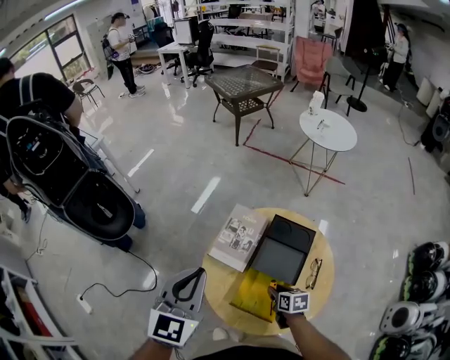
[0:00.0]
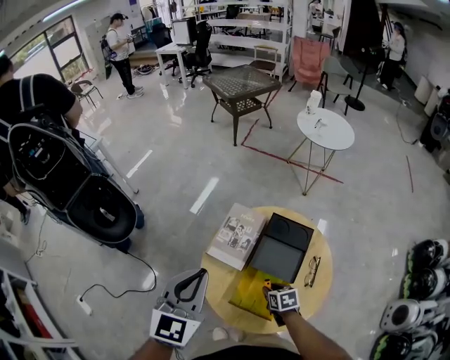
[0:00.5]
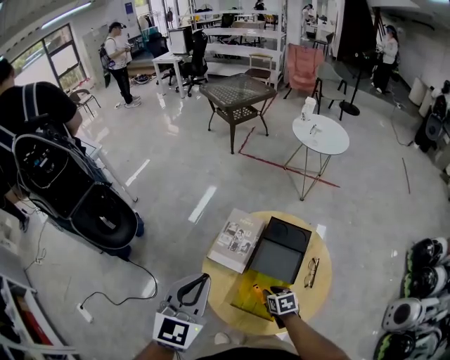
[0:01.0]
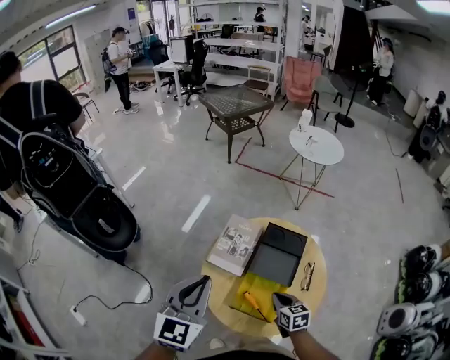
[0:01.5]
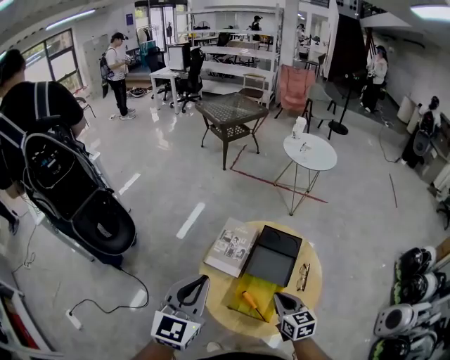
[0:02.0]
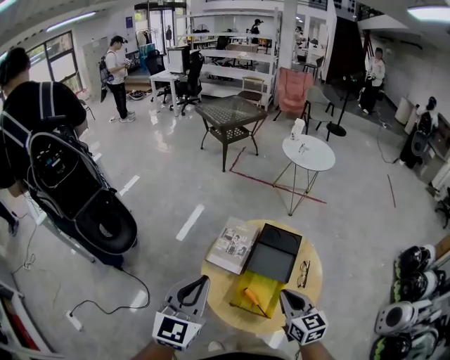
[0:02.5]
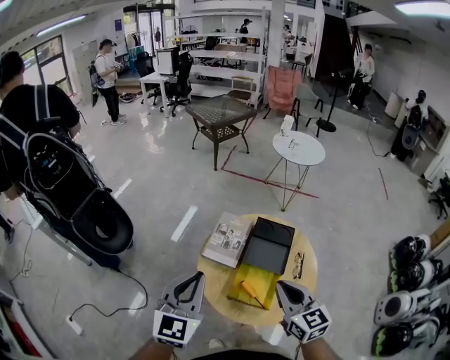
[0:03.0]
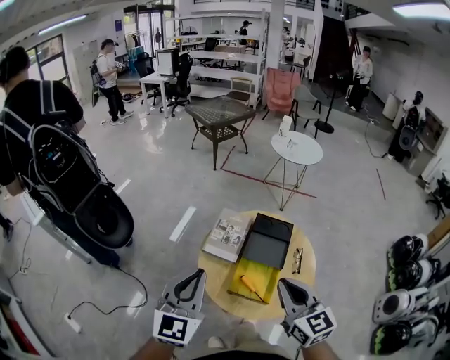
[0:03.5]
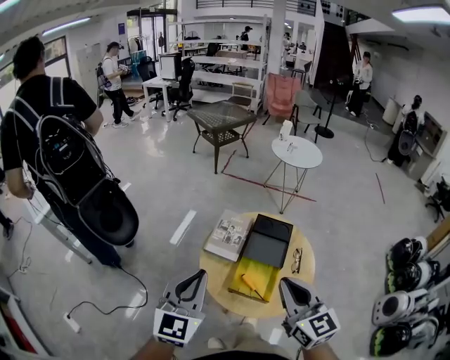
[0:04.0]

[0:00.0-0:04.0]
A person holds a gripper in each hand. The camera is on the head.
0:00.0 to 0:02.0: The left gripper travels backward by about 5 cm, while the right gripper heads upward and backward, covering about 20 cm, swivels some 30 degrees, and closes its fingers.
0:02.0 to 0:04.0: The left gripper is displaced backward by approximately 10 cm, while the right gripper goes roughly 25 cm upward and backward, and turns by roughly 20 degrees.

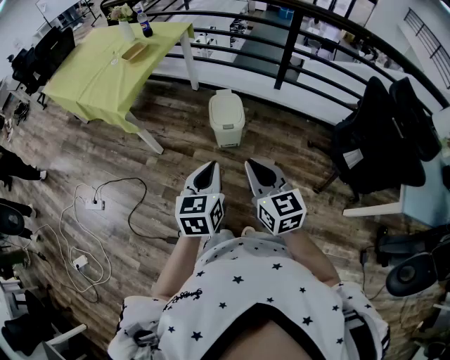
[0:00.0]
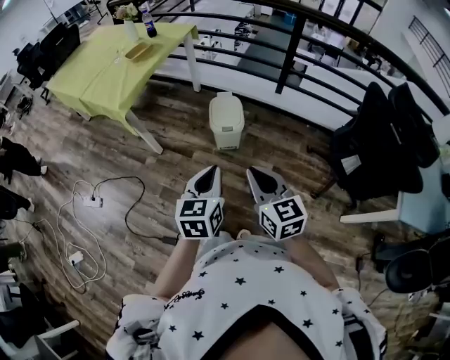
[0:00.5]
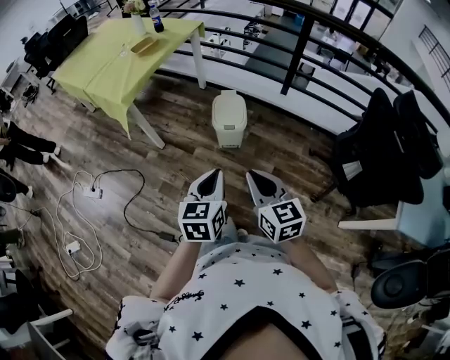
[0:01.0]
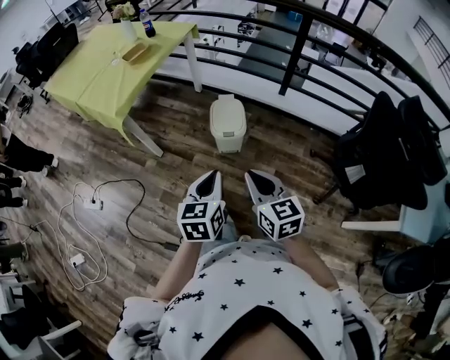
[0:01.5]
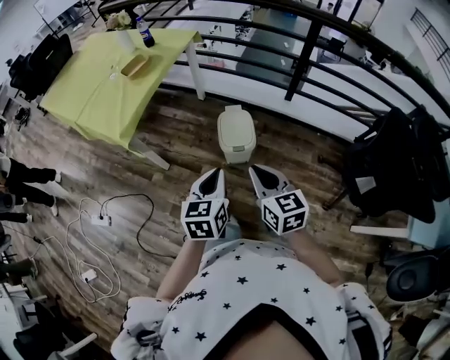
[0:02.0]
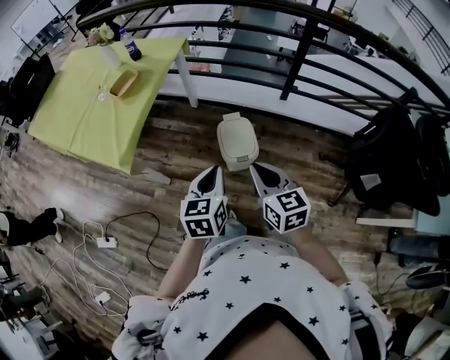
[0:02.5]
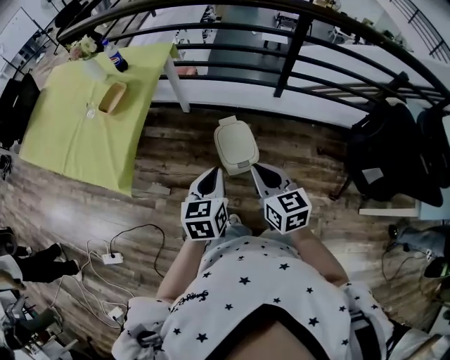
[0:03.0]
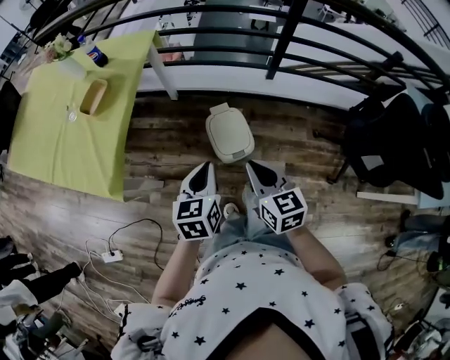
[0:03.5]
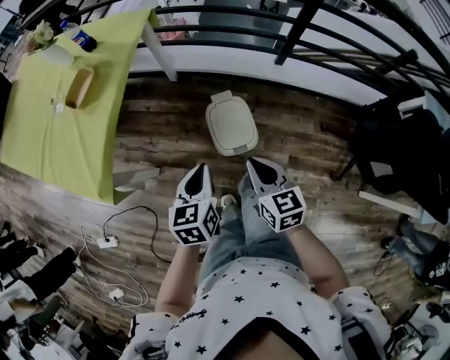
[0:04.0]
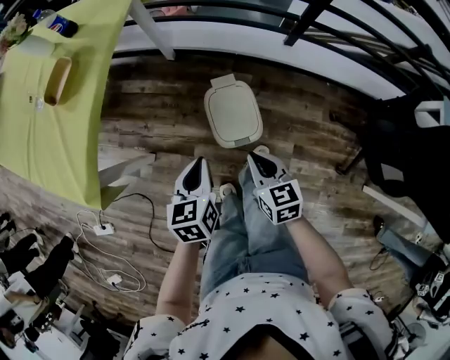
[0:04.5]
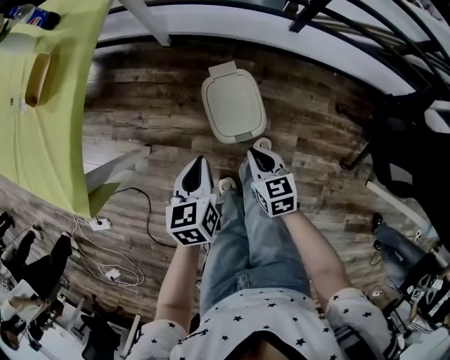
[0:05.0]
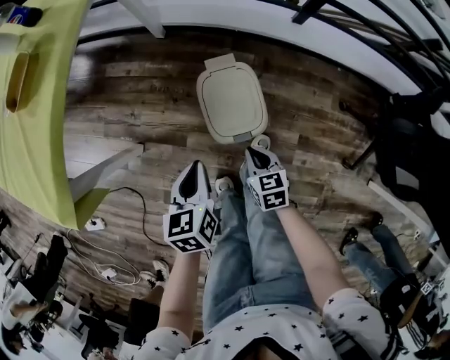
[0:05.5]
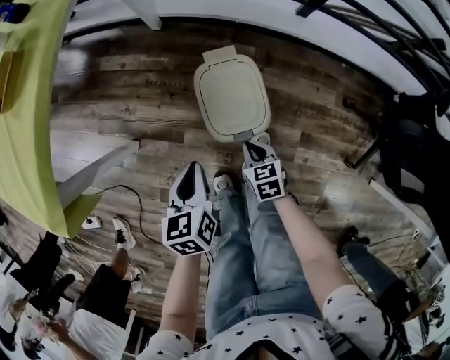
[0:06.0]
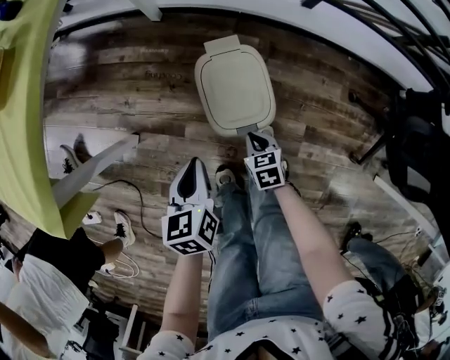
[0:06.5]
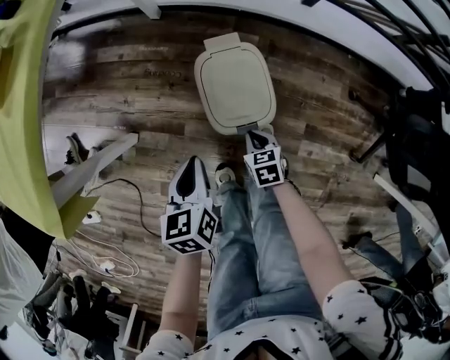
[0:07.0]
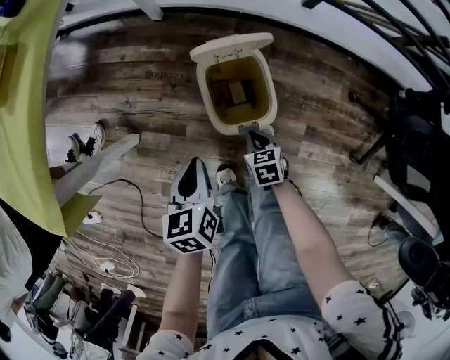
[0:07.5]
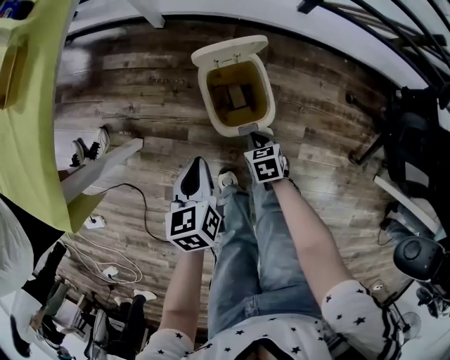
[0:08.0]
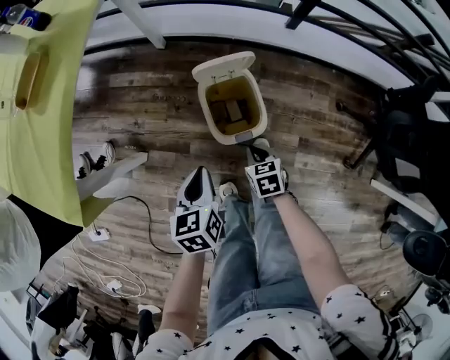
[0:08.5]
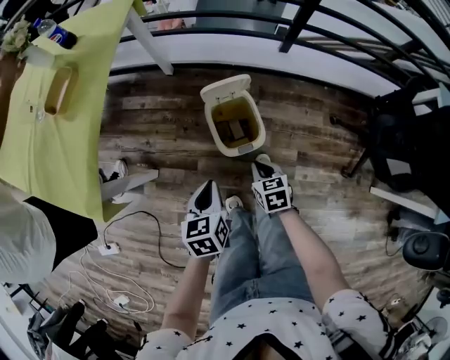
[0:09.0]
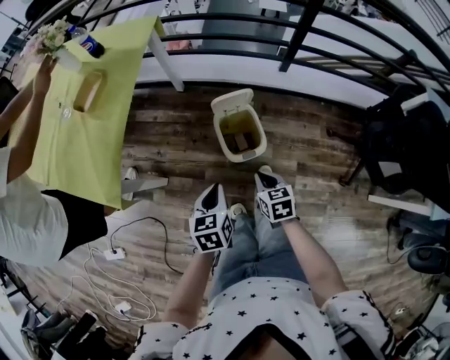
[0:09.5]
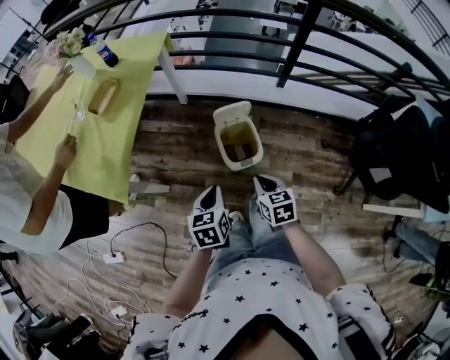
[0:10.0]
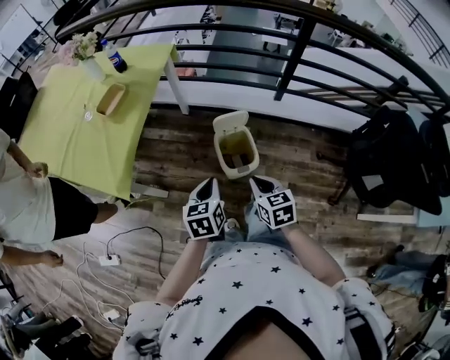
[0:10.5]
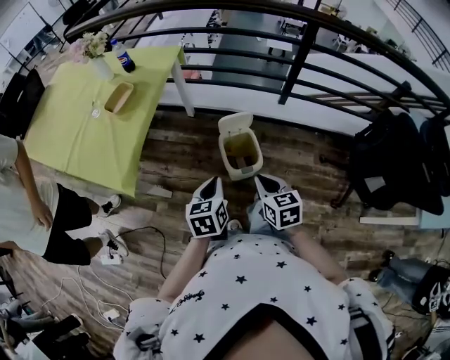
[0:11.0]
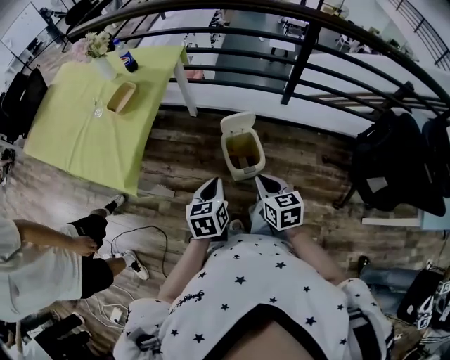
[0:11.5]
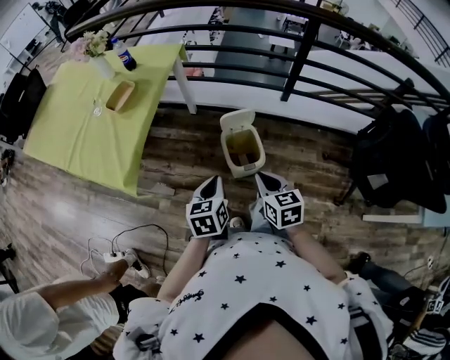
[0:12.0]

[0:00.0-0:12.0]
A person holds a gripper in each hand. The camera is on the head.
0:00.0 to 0:02.0: The two grippers go roughly 15 cm forward.
0:02.0 to 0:04.0: Both grippers travel together forward and downward, roughly 25 cm.
0:04.0 to 0:06.0: The right gripper heads downward, covering some 40 cm, and changes its angle by approximately 30 degrees. Meanwhile the left gripper shifts roughly 25 cm downward.
0:06.0 to 0:08.0: There are only small adjustments of the grippers.
0:08.0 to 0:10.0: The right gripper heads upward, covering roughly 35 cm, and changes its angle by about 20 degrees. The left gripper is displaced upward and backward by some 25 cm.
0:10.0 to 0:12.0: The right gripper heads upward, covering approximately 10 cm; the left gripper goes roughly 5 cm upward.

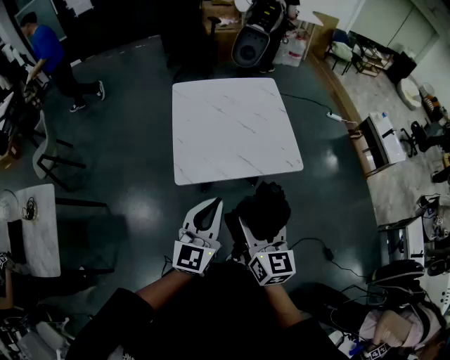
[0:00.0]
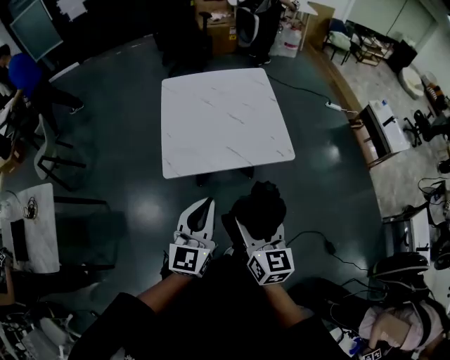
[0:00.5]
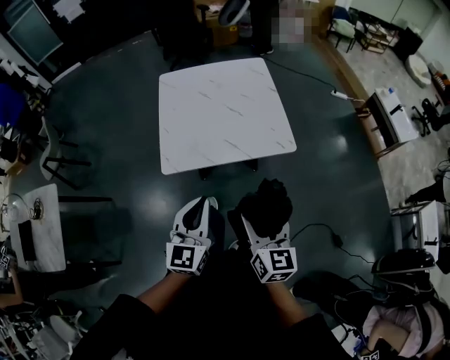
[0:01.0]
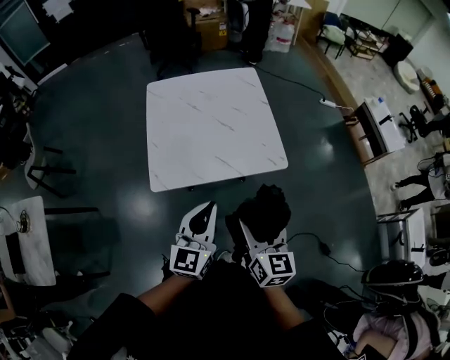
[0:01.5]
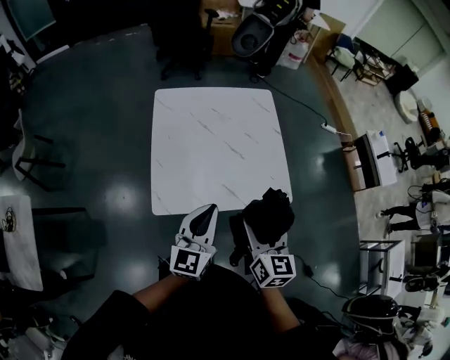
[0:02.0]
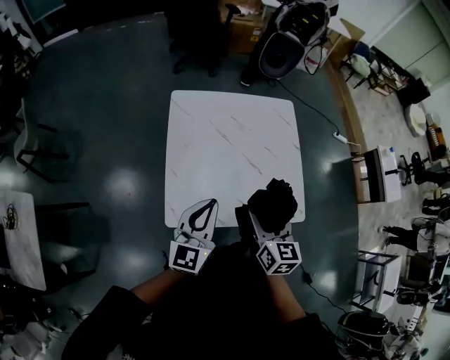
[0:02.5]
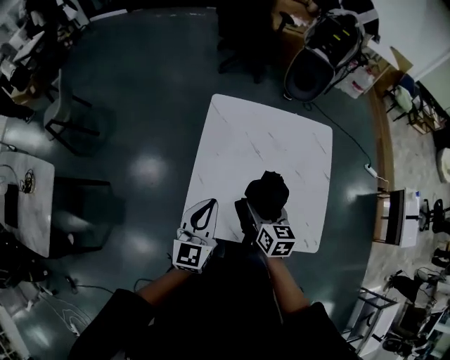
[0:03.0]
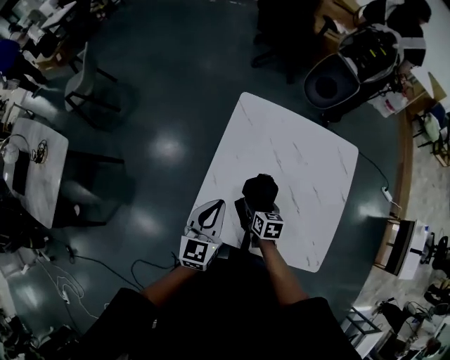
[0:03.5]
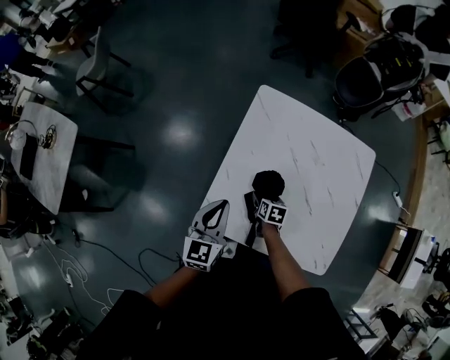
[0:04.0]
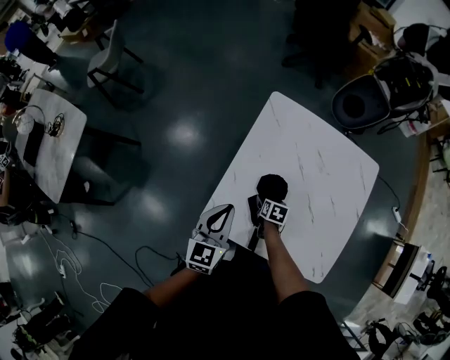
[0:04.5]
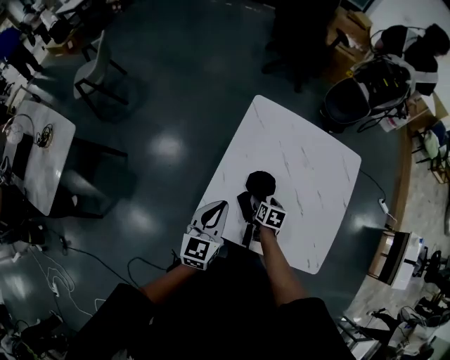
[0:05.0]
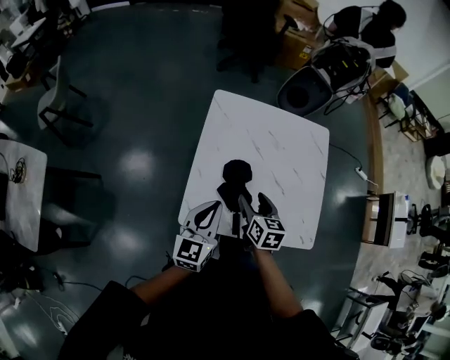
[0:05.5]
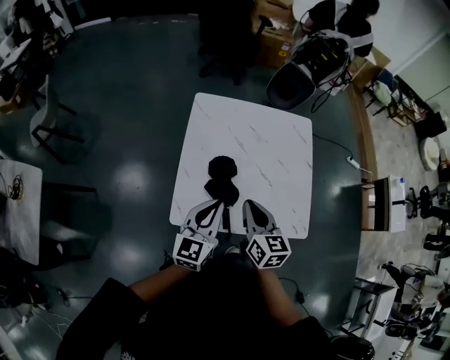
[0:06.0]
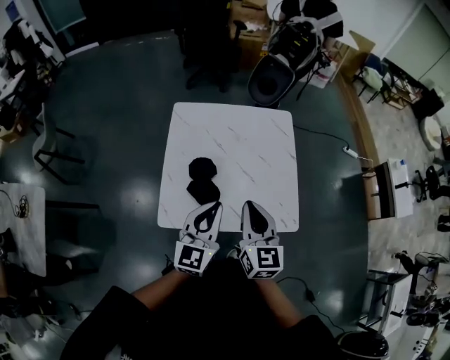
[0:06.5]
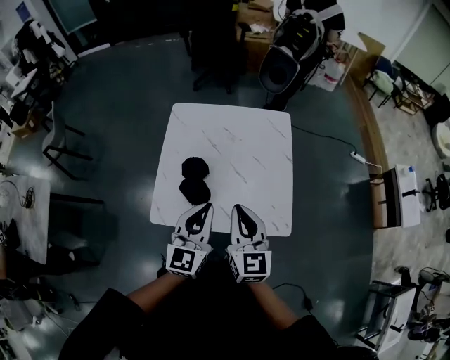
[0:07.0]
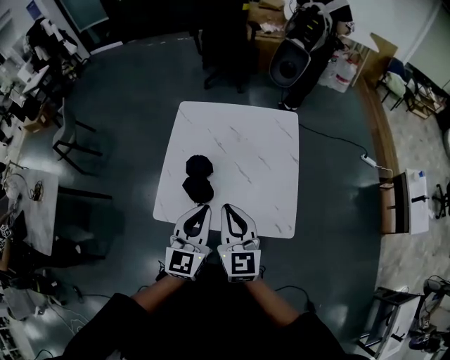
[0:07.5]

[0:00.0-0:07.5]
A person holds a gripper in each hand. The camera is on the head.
0:00.0 to 0:02.0: Both grippers travel together forward, approximately 20 cm.
0:02.0 to 0:04.0: The right gripper is displaced downward by about 35 cm, and angles its fingers downward, by some 40 degrees, while the left gripper moves some 25 cm, and changes its angle by about 30 degrees.
0:04.0 to 0:05.5: The left gripper moves backward, about 5 cm; the right gripper shifts approximately 20 cm upward, and swivels roughly 30 degrees.
0:05.5 to 0:07.5: The left gripper shifts approximately 20 cm to the right. The right gripper is displaced to the right, upward and backward by some 25 cm, turns by some 30 degrees, and closes up.

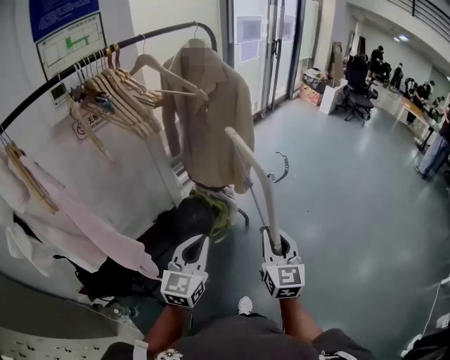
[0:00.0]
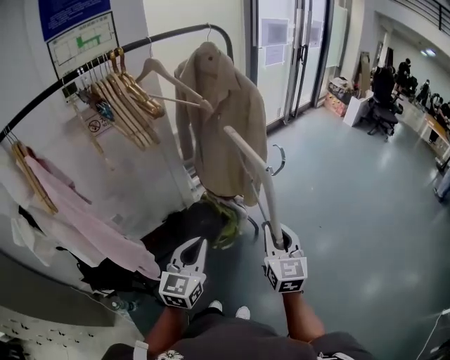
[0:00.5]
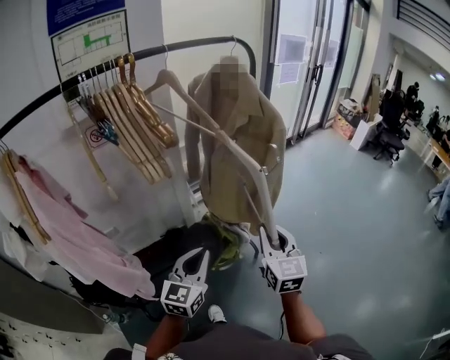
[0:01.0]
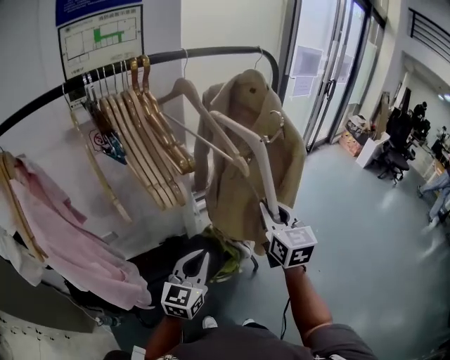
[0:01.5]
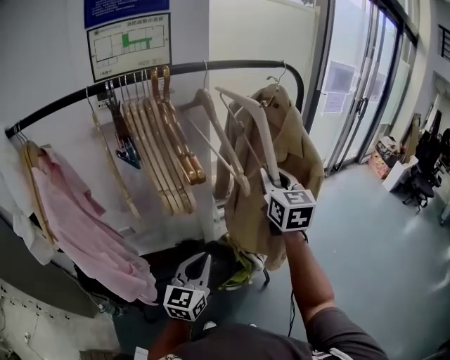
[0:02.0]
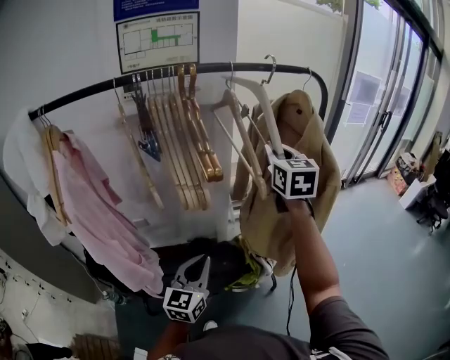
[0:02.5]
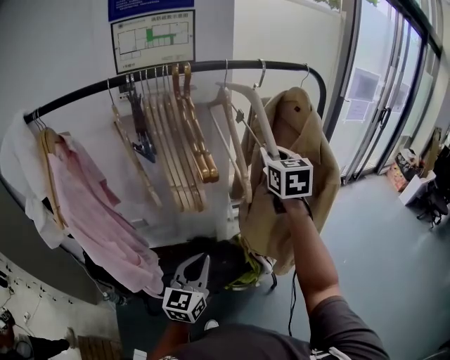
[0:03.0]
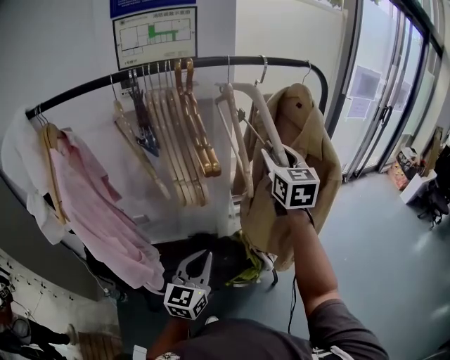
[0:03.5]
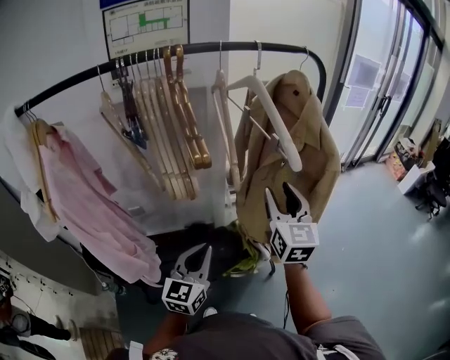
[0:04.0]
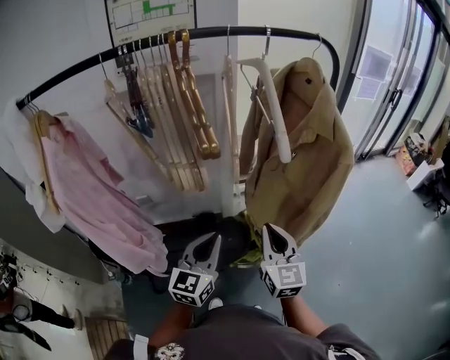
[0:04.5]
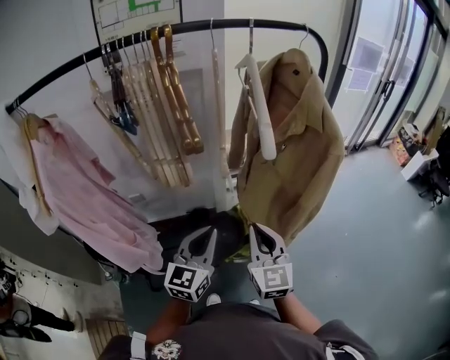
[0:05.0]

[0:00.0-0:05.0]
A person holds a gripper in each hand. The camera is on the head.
0:00.0 to 0:02.5: The left gripper shifts by some 20 cm, and swivels some 30 degrees; the right gripper ends up roughly 50 cm from where it was, and rotates some 40 degrees.
0:02.5 to 0:05.0: The right gripper goes roughly 30 cm backward and downward, and opens and closes again.
